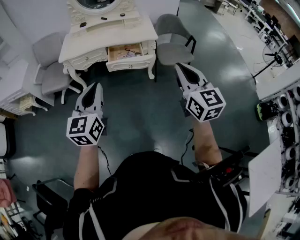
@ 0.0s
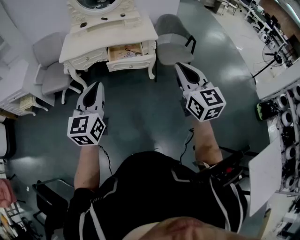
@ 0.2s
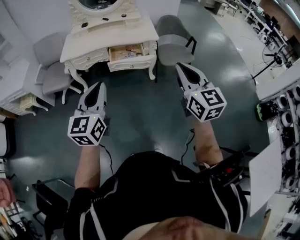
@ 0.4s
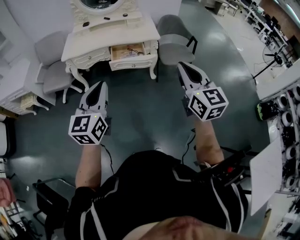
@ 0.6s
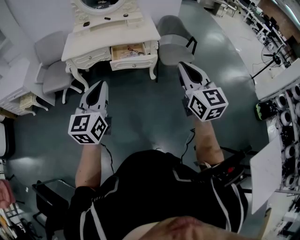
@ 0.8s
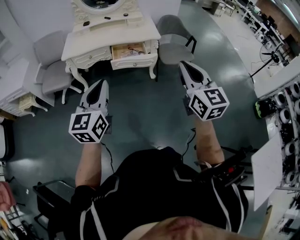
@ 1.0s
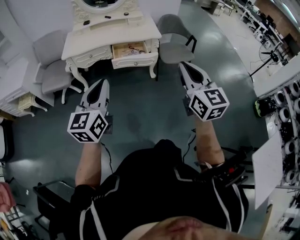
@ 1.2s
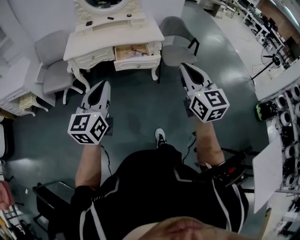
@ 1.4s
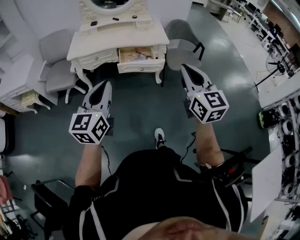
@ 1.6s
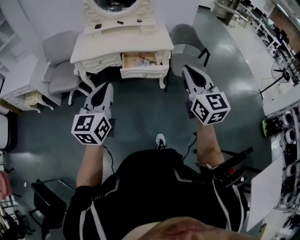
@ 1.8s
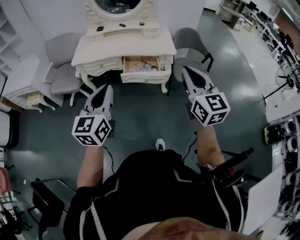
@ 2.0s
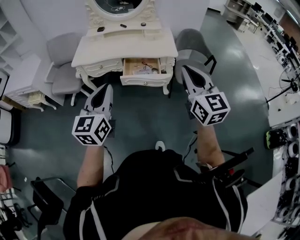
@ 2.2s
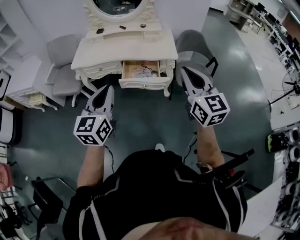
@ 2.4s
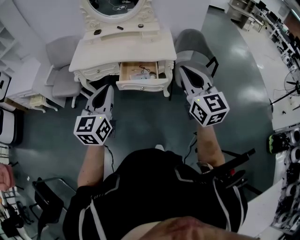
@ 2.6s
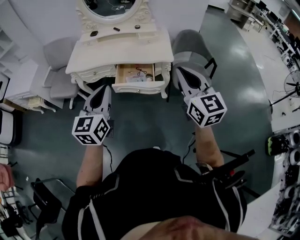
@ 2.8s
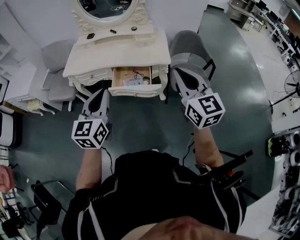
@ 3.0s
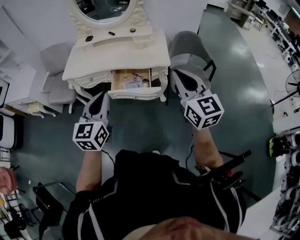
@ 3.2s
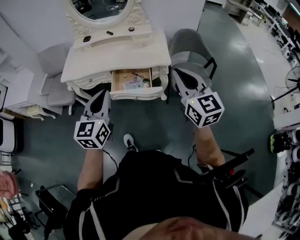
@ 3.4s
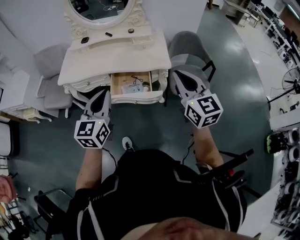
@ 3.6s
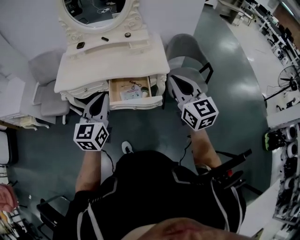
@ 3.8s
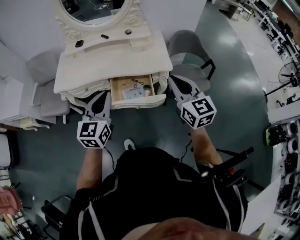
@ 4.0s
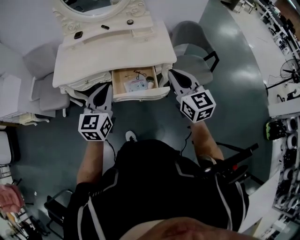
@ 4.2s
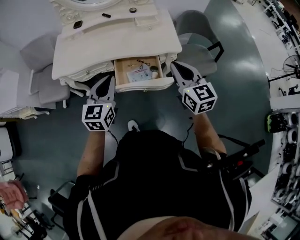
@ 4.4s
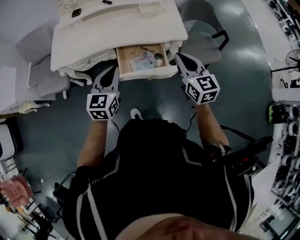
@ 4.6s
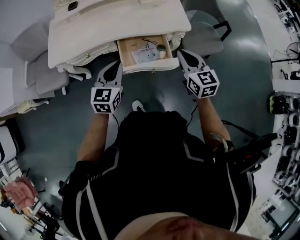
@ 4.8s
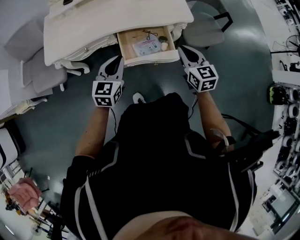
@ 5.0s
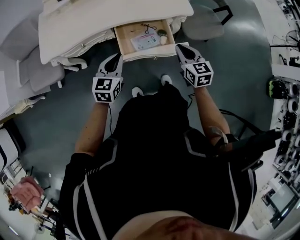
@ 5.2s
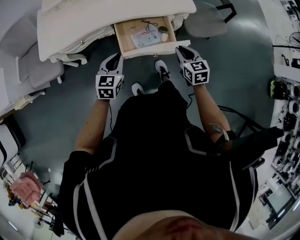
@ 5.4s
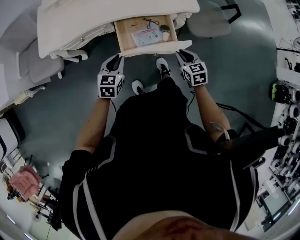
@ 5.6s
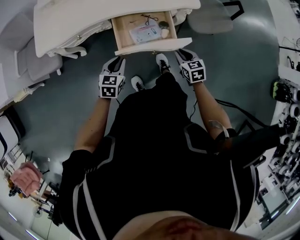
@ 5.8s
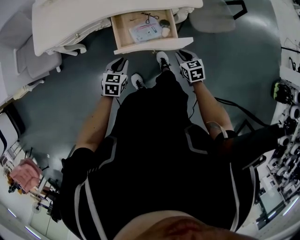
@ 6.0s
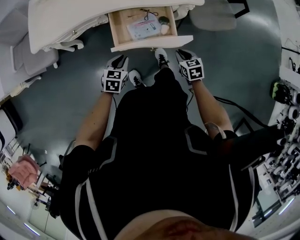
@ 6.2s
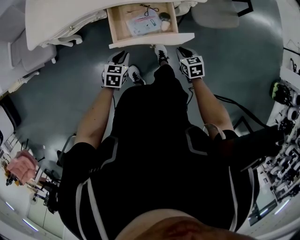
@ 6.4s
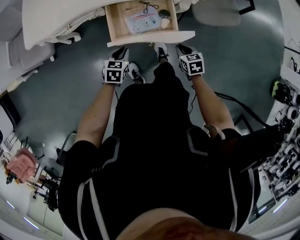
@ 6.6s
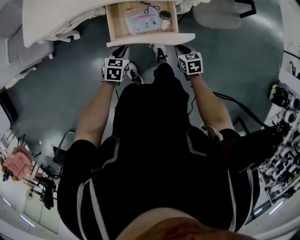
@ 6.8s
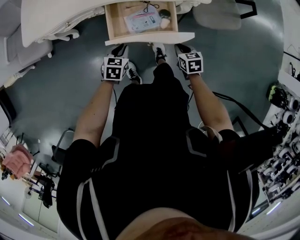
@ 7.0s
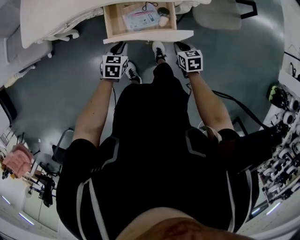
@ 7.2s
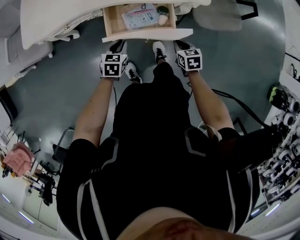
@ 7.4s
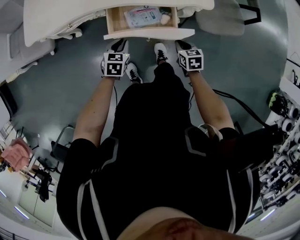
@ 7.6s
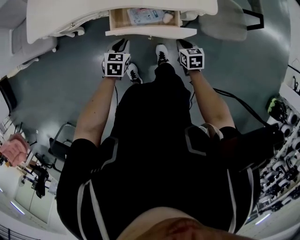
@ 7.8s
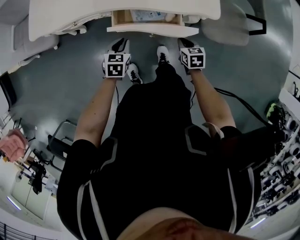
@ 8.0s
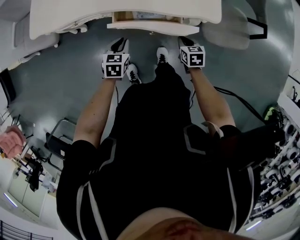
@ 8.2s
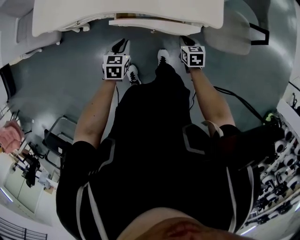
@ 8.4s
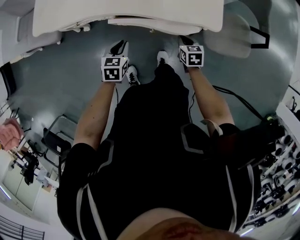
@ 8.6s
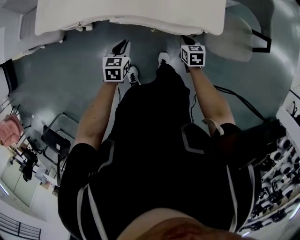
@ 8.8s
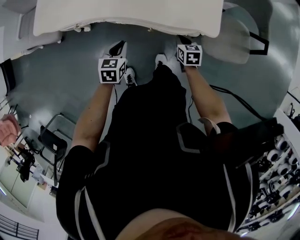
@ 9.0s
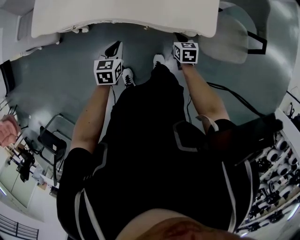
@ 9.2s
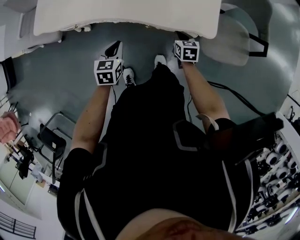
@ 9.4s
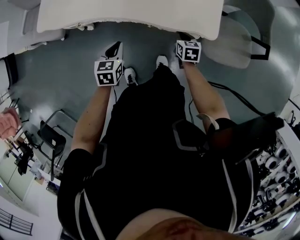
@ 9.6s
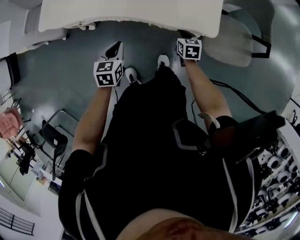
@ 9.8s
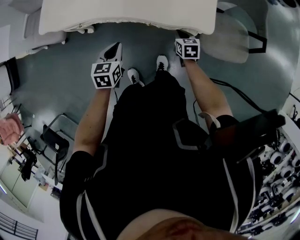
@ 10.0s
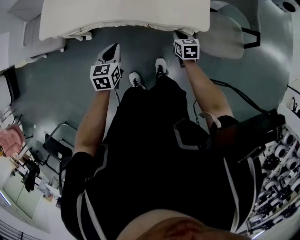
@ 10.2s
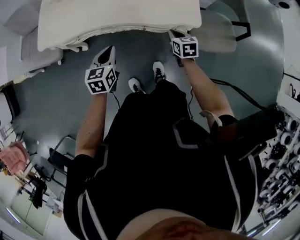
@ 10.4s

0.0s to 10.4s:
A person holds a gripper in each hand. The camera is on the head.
0.0s to 1.4s: Both grippers move to the left, some 5 cm.
1.4s to 3.0s: The two grippers go approximately 30 cm forward and to the right.
3.0s to 4.4s: The left gripper shifts roughly 20 cm forward and downward. Meanwhile the right gripper goes some 25 cm forward, downward and to the left.
4.4s to 6.0s: Both grippers move downward, approximately 35 cm. The right gripper angles its fingers downward, by about 40 degrees. Meanwhile the left gripper tilts its fingers roughly 30 degrees downward.
6.0s to 7.4s: The two grippers go roughly 5 cm forward.
7.4s to 9.0s: The left gripper shifts approximately 5 cm forward. The right gripper moves forward, roughly 15 cm.
9.0s to 10.4s: Both grippers travel together upward, approximately 10 cm.

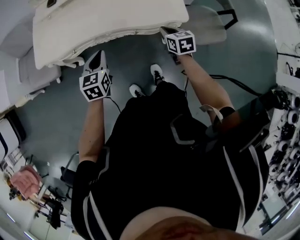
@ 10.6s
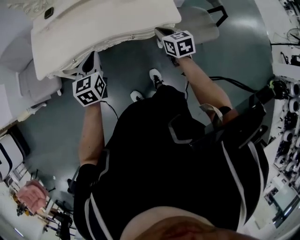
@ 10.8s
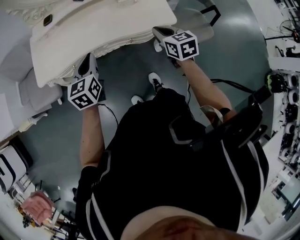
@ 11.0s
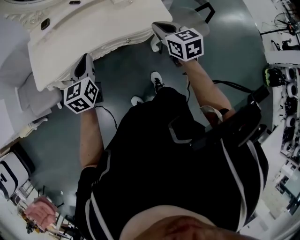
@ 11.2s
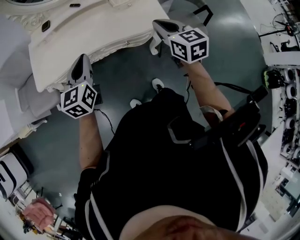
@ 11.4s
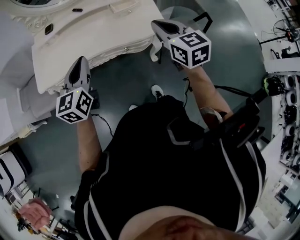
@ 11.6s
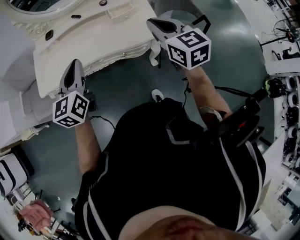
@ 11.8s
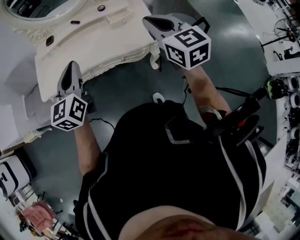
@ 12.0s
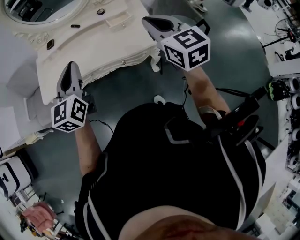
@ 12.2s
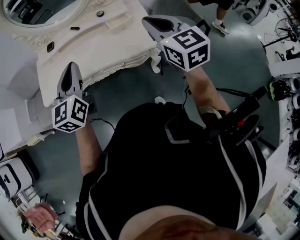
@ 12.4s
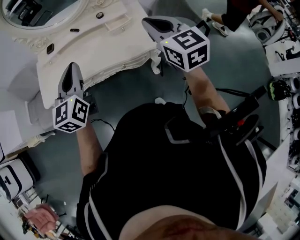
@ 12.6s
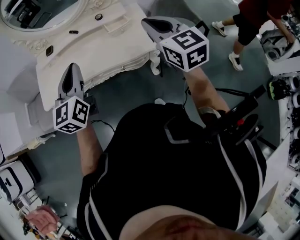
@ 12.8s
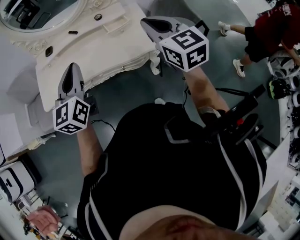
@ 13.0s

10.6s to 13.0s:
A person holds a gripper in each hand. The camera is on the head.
10.6s to 11.8s: Both grippers move upward, some 25 cm. The right gripper rotates approximately 30 degrees. Meanwhile the left gripper swivels approximately 30 degrees.
11.8s to 13.0s: The left gripper travels to the right by about 5 cm. The right gripper shifts by roughly 5 cm.

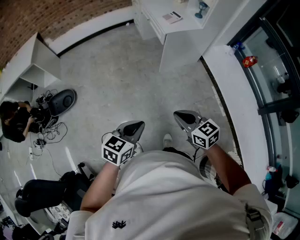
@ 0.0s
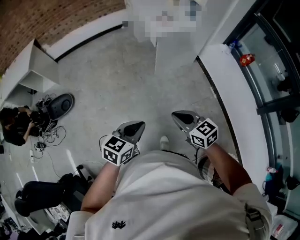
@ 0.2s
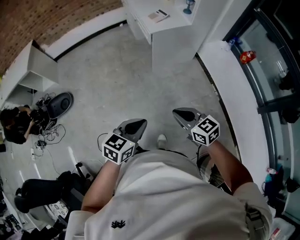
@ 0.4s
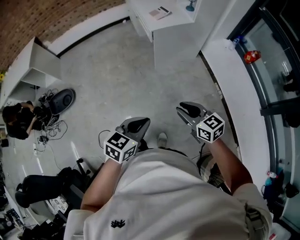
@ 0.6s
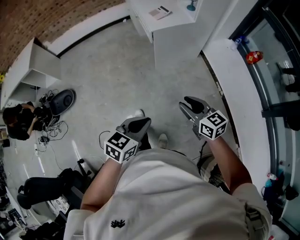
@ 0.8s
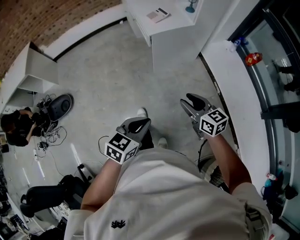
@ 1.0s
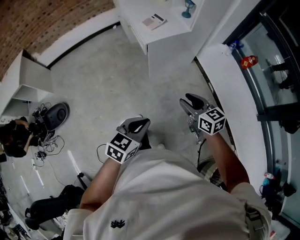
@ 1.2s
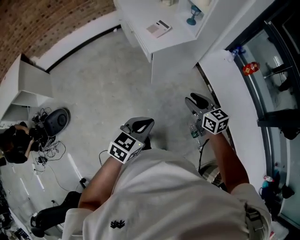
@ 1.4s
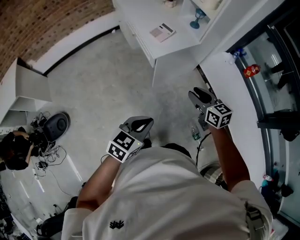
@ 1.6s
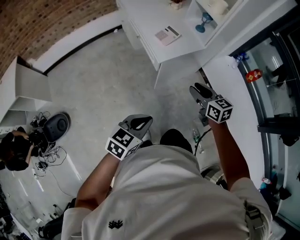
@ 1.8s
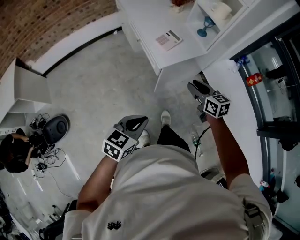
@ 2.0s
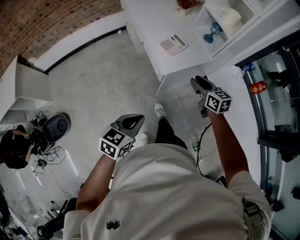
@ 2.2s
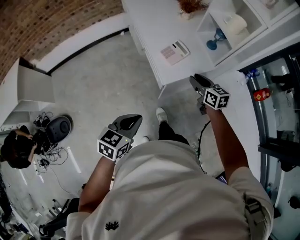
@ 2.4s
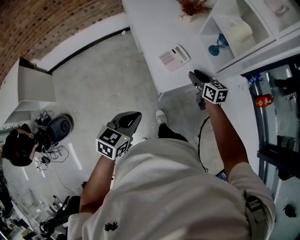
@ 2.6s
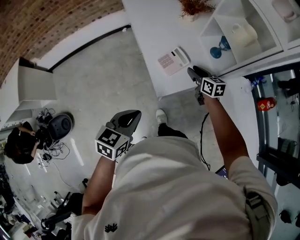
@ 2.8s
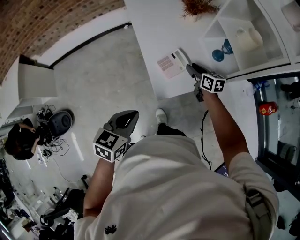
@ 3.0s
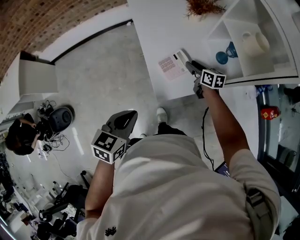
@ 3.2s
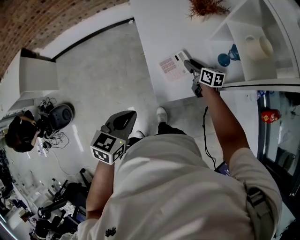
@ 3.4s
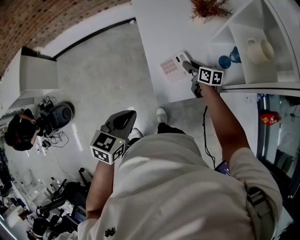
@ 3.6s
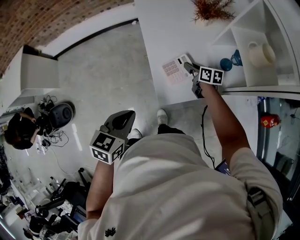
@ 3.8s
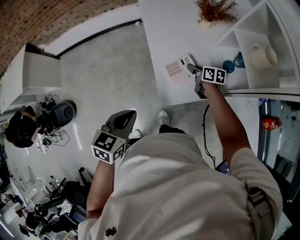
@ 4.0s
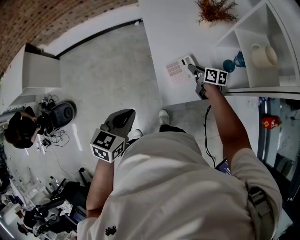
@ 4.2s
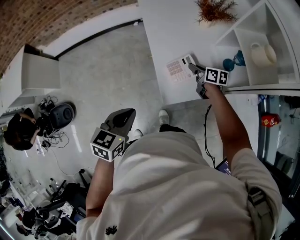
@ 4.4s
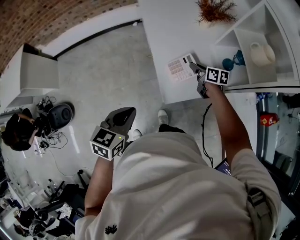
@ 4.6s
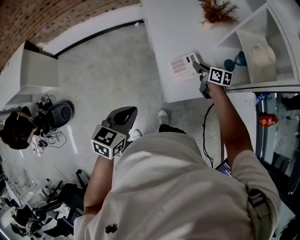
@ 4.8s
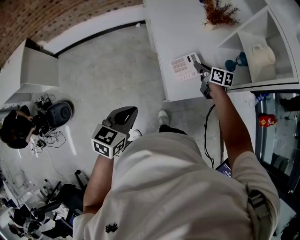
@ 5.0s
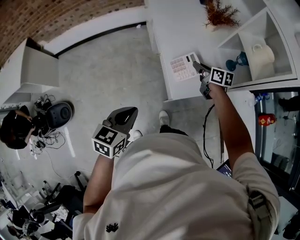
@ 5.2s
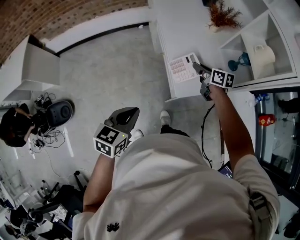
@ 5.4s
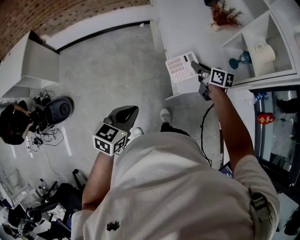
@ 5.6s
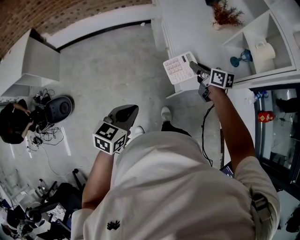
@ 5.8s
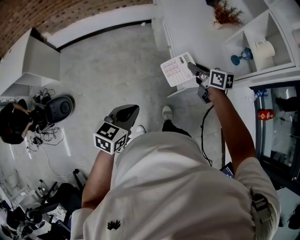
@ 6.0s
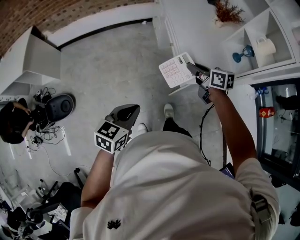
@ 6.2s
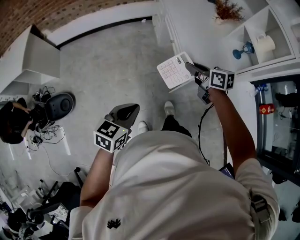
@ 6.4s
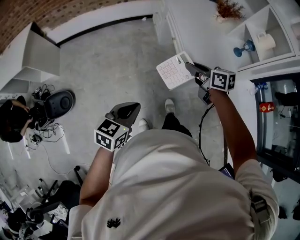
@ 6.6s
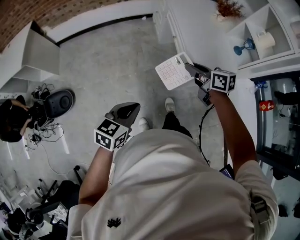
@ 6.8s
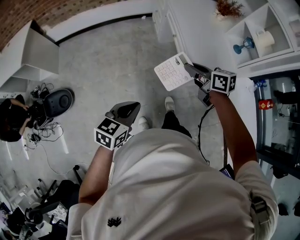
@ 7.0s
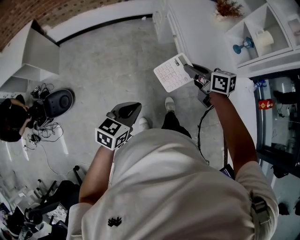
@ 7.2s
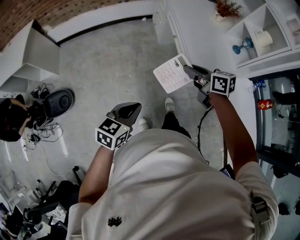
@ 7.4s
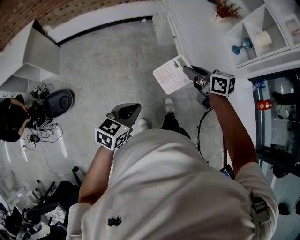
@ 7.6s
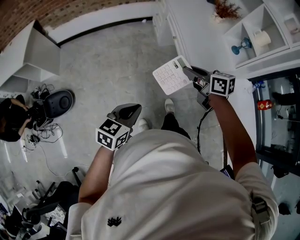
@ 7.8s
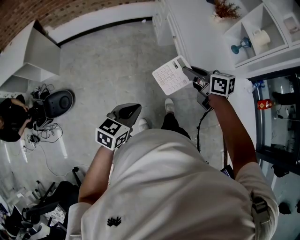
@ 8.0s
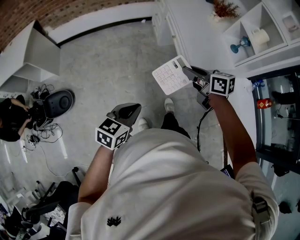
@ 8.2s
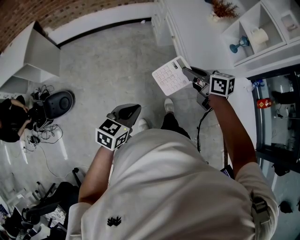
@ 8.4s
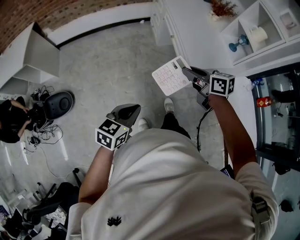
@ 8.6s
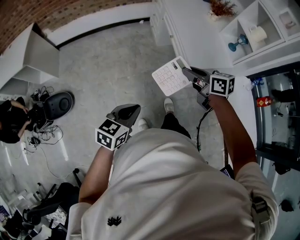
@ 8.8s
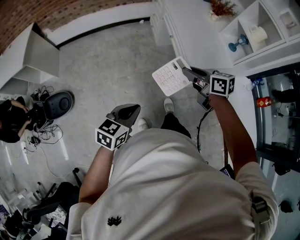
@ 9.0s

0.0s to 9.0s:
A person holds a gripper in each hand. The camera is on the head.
0.0s to 1.6s: The two grippers go about 35 cm forward. The right gripper opens up.
1.6s to 3.0s: Both grippers travel together forward, some 40 cm. The left gripper turns by about 20 degrees.
3.0s to 4.4s: The left gripper shifts by roughly 5 cm. Meanwhile the right gripper changes place by some 5 cm, and closes.
4.4s to 6.0s: The right gripper goes some 25 cm to the left, upward and backward; the left gripper is displaced to the left and backward by approximately 20 cm.
6.0s to 7.6s: Both grippers move backward and to the left, approximately 15 cm.
7.6s to 9.0s: The grippers stay close to where they were, moving slightly.

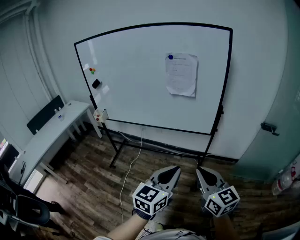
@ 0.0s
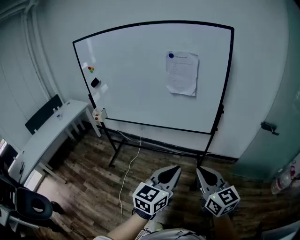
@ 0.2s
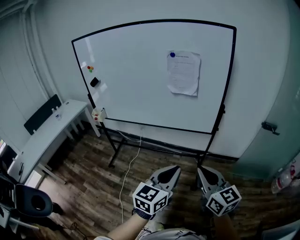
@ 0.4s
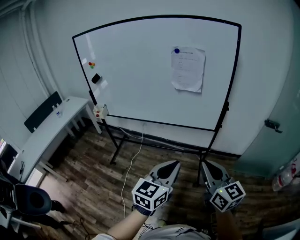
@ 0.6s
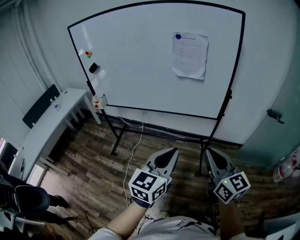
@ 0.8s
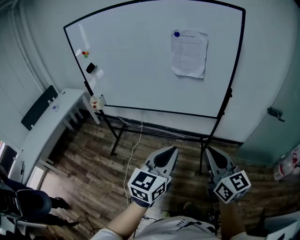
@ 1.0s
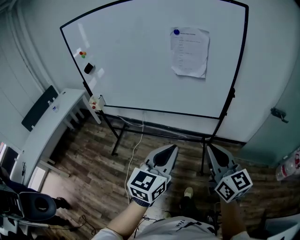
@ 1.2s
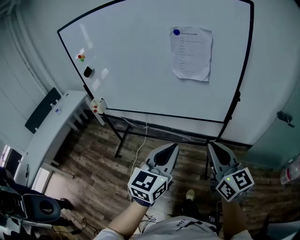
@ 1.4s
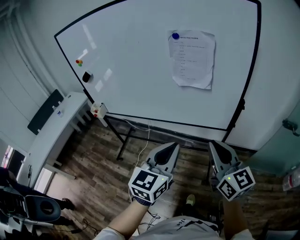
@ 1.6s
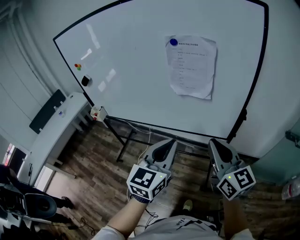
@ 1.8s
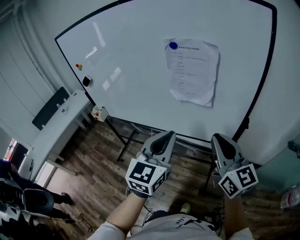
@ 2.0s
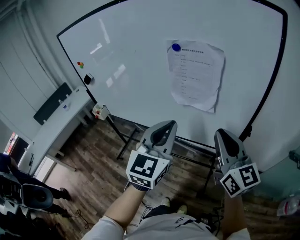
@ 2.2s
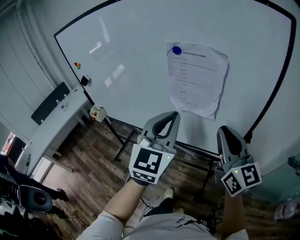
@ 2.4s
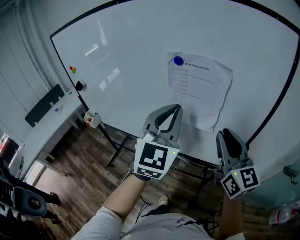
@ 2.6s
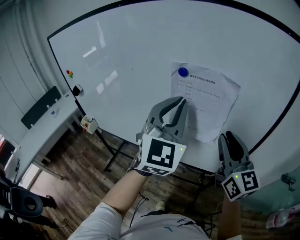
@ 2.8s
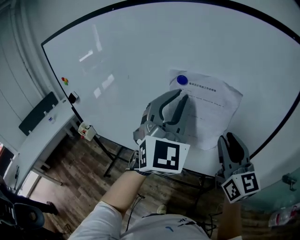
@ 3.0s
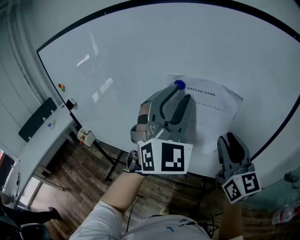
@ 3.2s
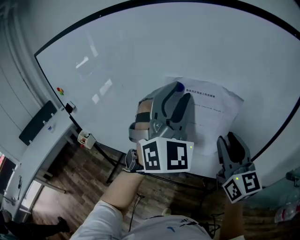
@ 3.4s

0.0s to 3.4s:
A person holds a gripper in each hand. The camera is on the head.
0.0s to 1.6s: Both grippers travel together forward, approximately 20 cm.
1.6s to 3.4s: The left gripper shifts roughly 40 cm forward and upward, twists roughly 60 degrees clockwise, seen from behind, and opens its fingers. The right gripper shifts about 30 cm forward, and opens up.
